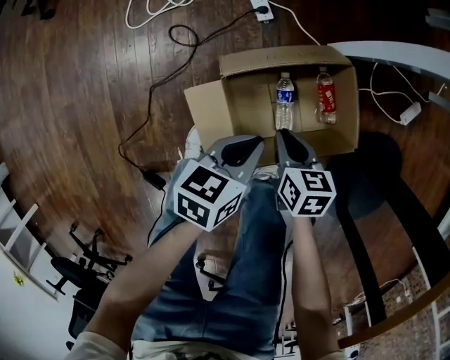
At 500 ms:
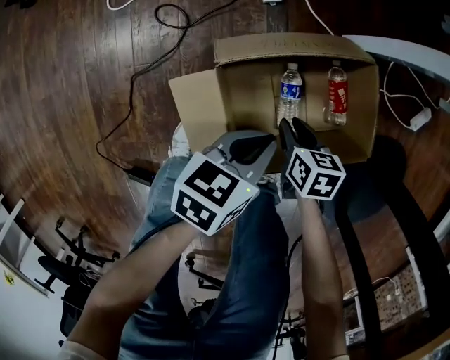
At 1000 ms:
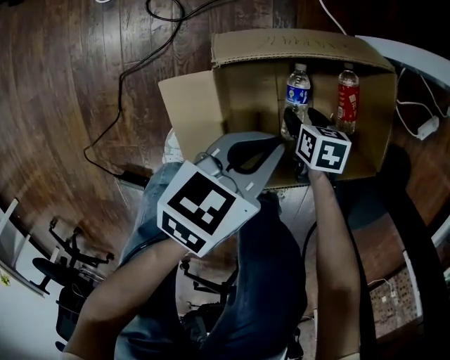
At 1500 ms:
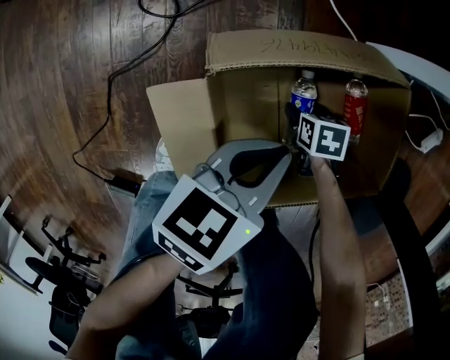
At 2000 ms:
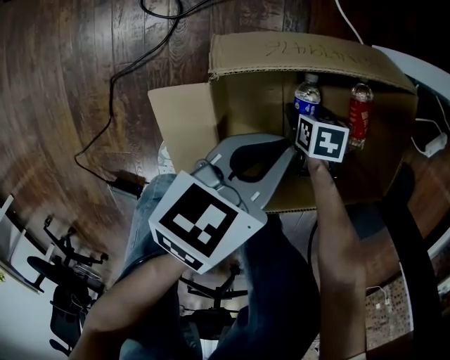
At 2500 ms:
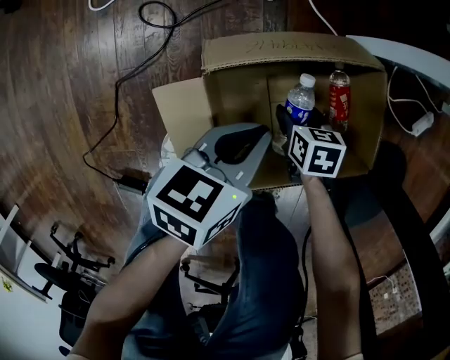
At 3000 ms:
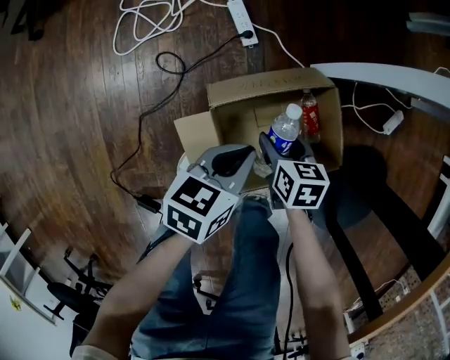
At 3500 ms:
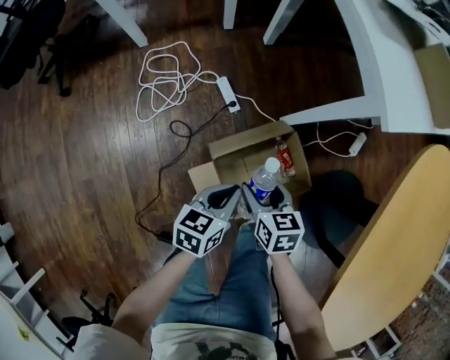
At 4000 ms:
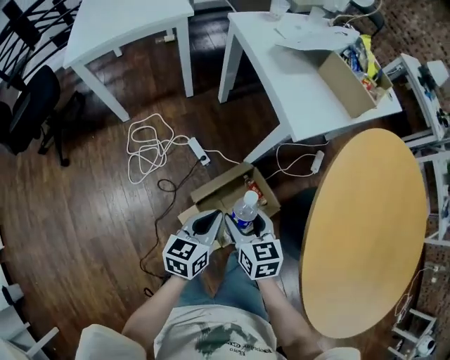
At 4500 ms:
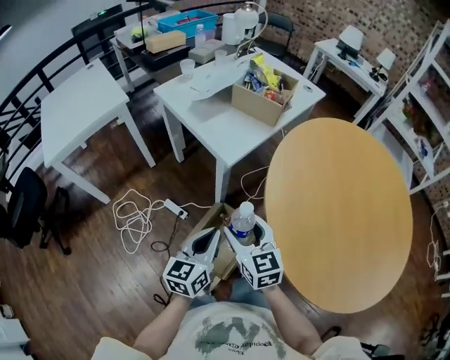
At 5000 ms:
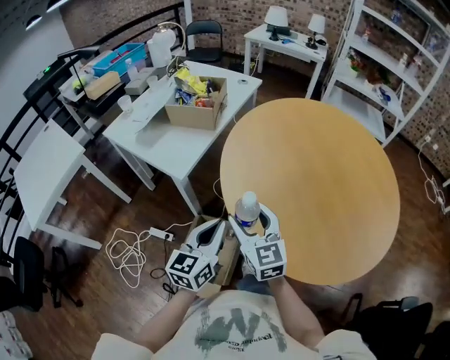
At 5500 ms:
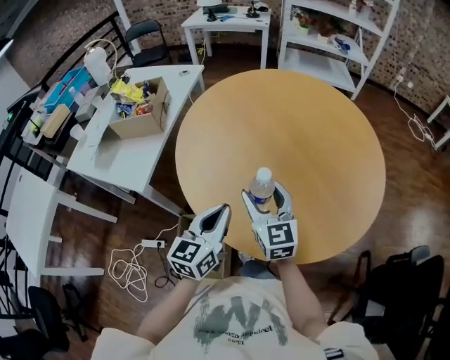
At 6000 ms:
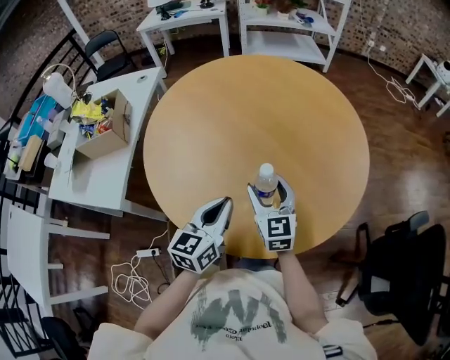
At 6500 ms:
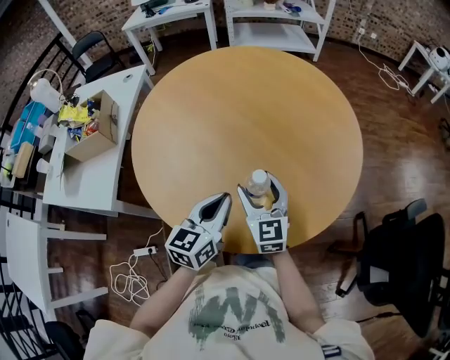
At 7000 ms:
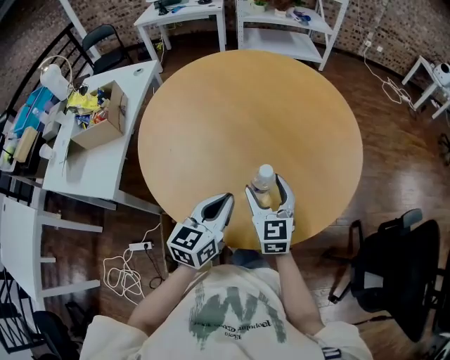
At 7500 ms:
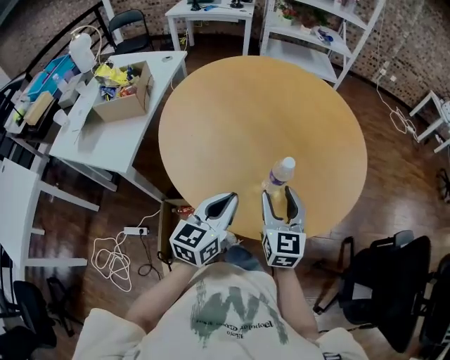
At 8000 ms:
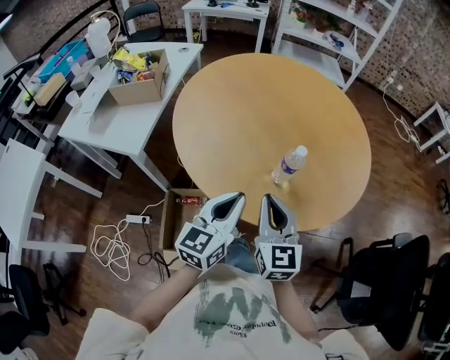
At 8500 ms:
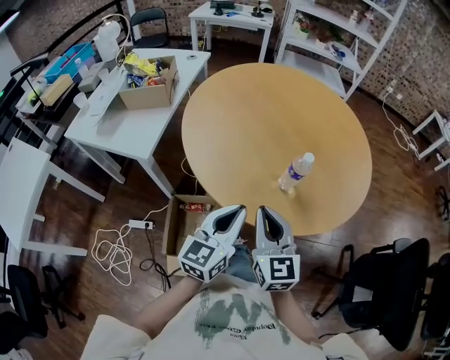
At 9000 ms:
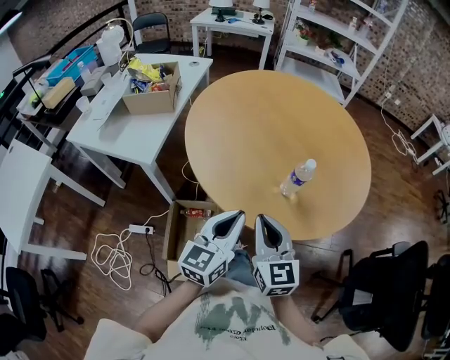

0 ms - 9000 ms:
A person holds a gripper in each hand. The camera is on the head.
0 ms - 2000 ms: The left gripper moves downward, approximately 15 cm. The right gripper travels downward by roughly 30 cm, swivels about 30 degrees, and opens its fingers.
2000 ms - 4500 ms: Both grippers move upward, approximately 80 cm. The left gripper turns by about 40 degrees, while the right gripper tips its fingers upward by approximately 60 degrees.
4500 ms - 7000 ms: The right gripper shifts by about 40 cm, and changes its angle by approximately 60 degrees. The left gripper shifts by roughly 40 cm, and rotates roughly 50 degrees.
7000 ms - 9000 ms: The grippers both shift backward and to the left by roughly 20 cm. The right gripper closes.

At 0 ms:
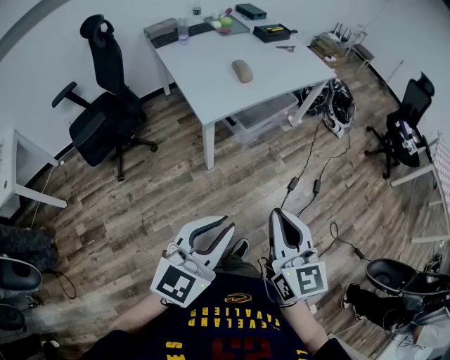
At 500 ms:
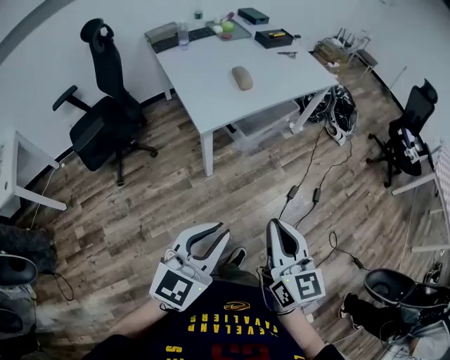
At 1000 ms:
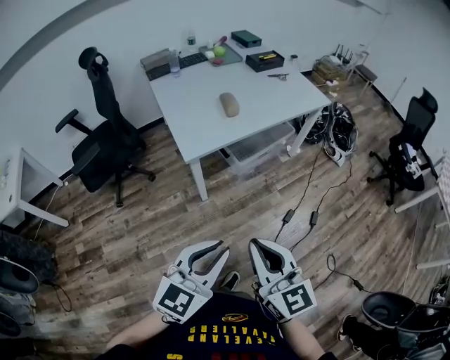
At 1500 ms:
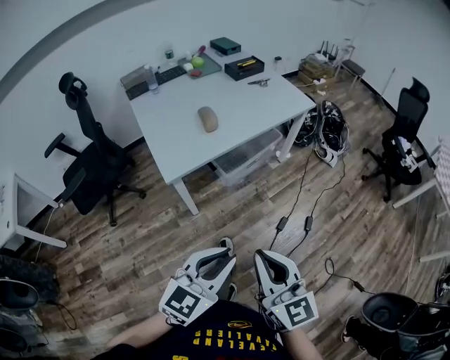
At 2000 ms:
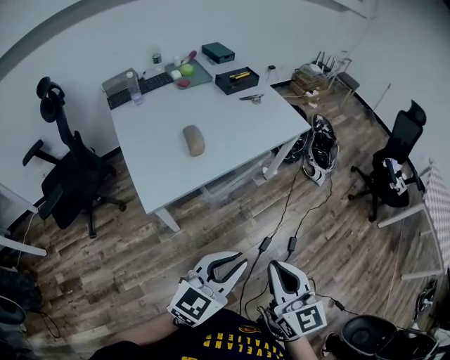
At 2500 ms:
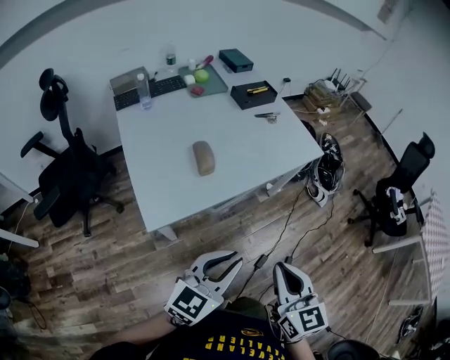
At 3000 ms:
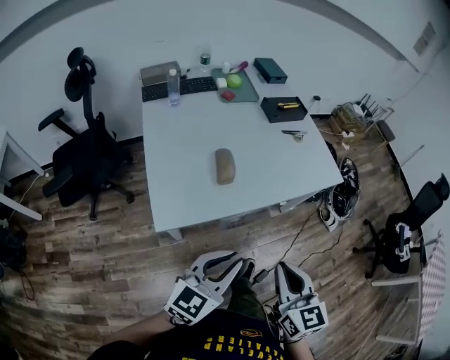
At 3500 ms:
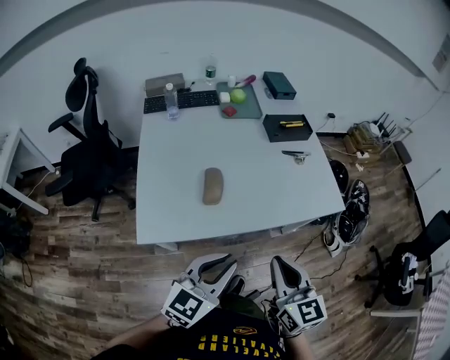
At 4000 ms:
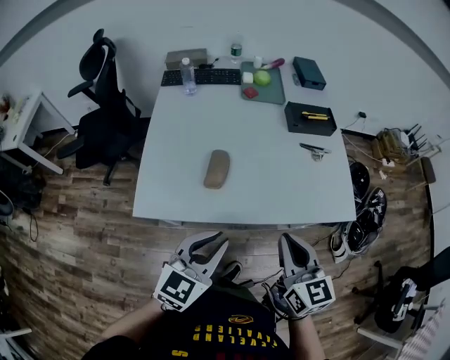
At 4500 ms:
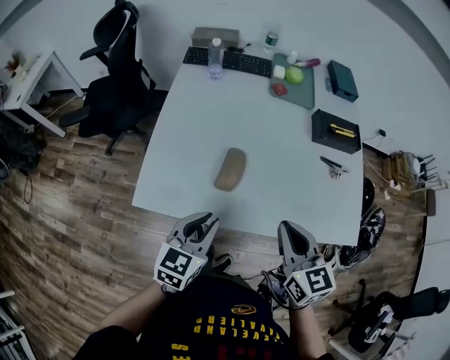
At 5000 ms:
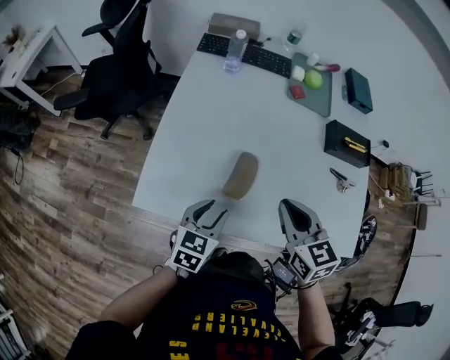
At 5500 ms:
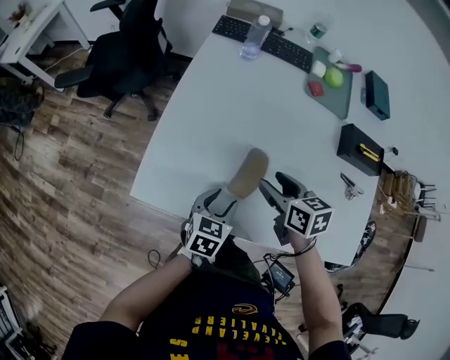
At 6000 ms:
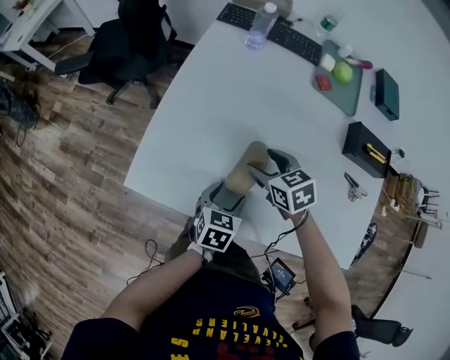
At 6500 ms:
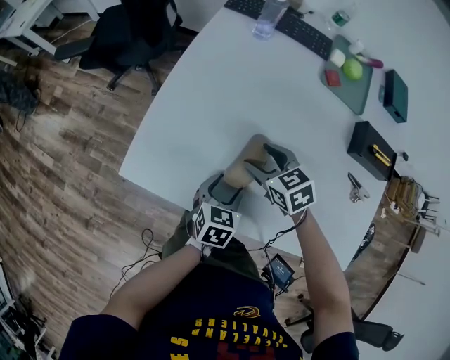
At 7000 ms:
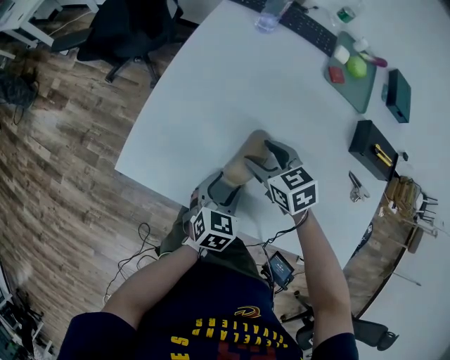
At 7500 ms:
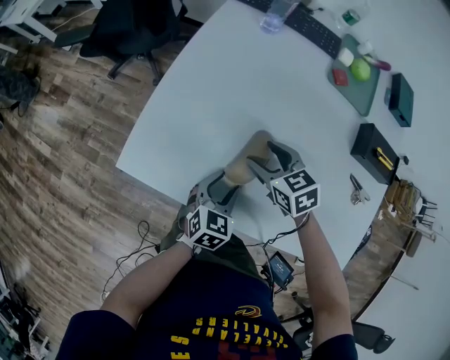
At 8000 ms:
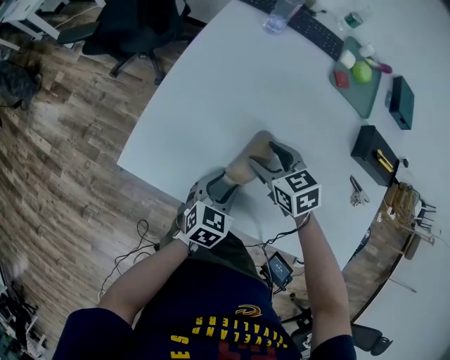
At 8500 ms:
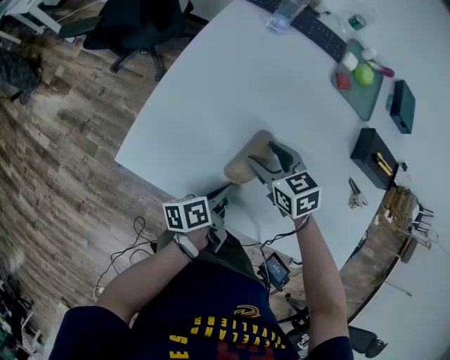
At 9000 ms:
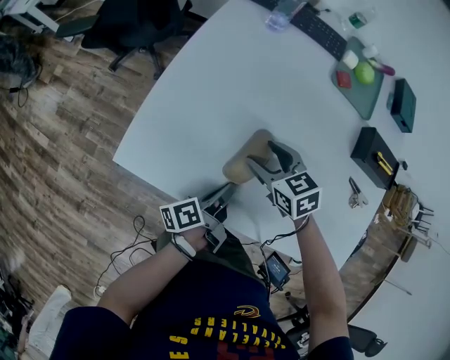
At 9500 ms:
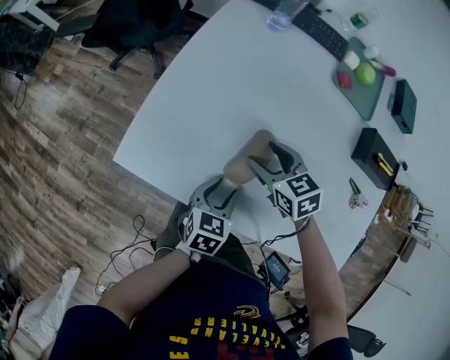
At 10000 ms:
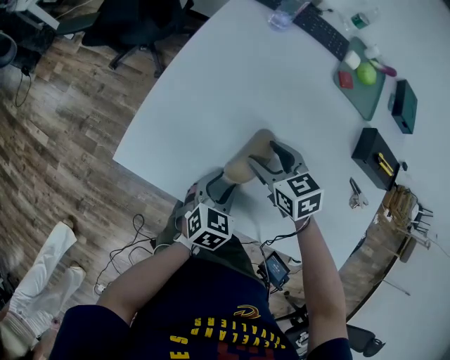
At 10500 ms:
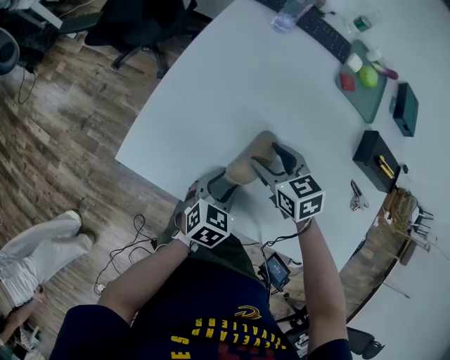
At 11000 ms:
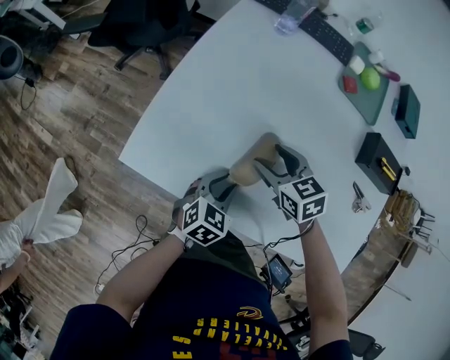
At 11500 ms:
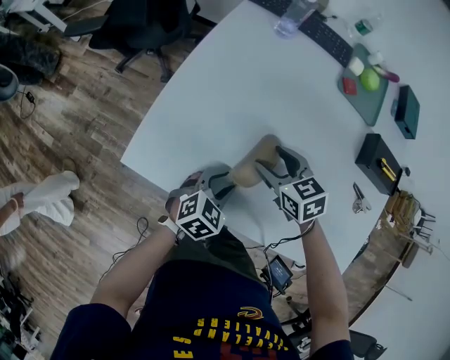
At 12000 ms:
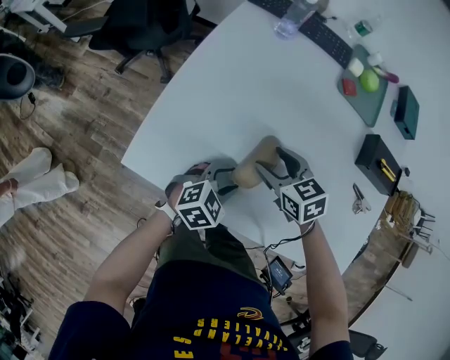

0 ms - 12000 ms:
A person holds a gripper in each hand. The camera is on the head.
0 ms - 2000 ms: Both grippers travel together forward and to the right, some 30 cm.
2000 ms - 4000 ms: The left gripper moves about 30 cm, and turns by approximately 40 degrees. The right gripper changes place by approximately 40 cm, and swivels about 30 degrees.
4000 ms - 6000 ms: The right gripper changes place by approximately 40 cm, angles its fingers downward, by roughly 40 degrees, and opens. The left gripper goes approximately 25 cm downward, changes its angle by approximately 50 degrees, and opens up.
6000 ms - 8000 ms: The grippers move only a little.
8000 ms - 10000 ms: The left gripper closes, then opens again.
10000 ms - 12000 ms: The left gripper turns by about 30 degrees.

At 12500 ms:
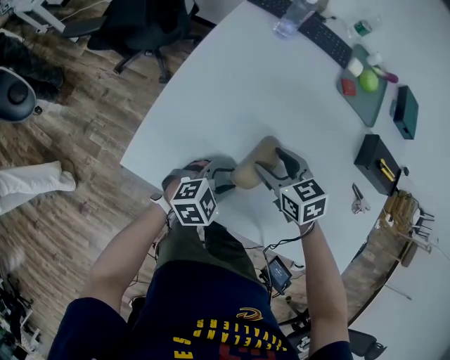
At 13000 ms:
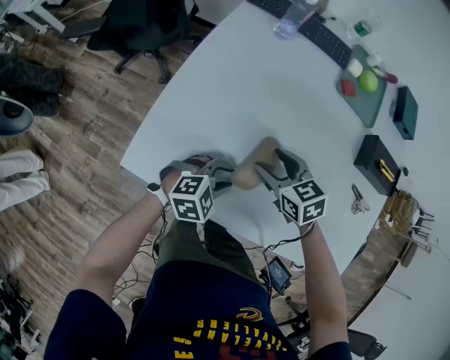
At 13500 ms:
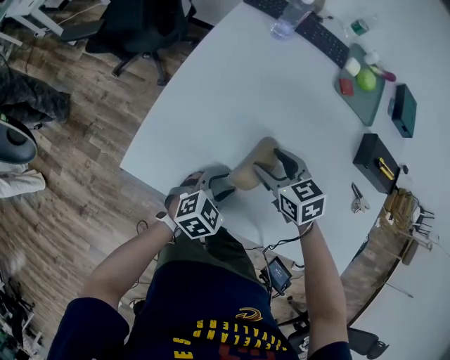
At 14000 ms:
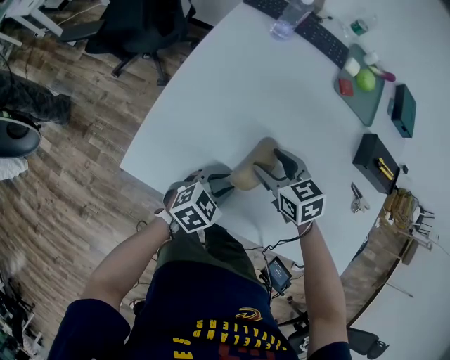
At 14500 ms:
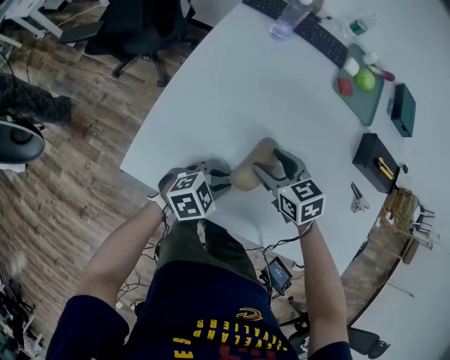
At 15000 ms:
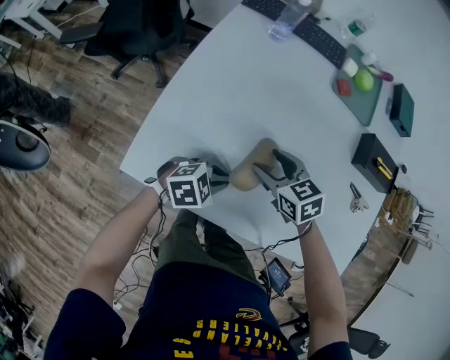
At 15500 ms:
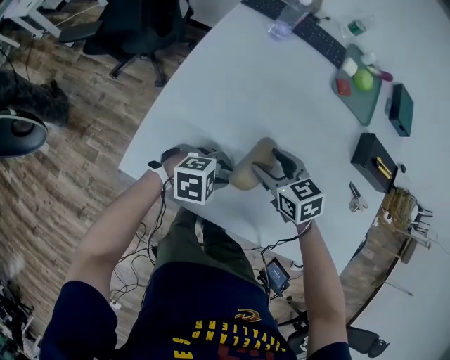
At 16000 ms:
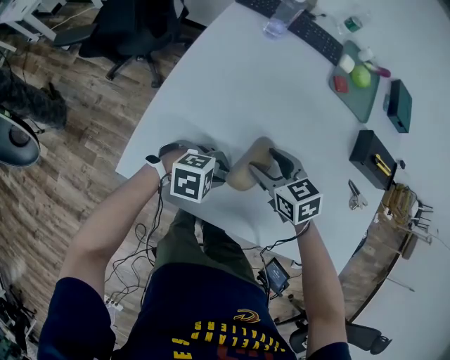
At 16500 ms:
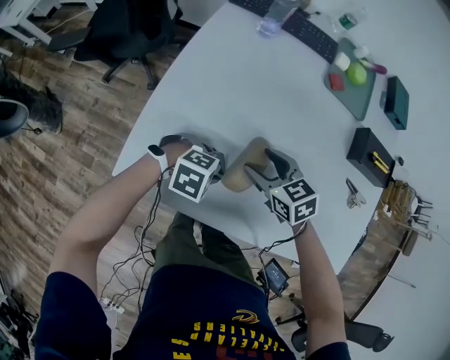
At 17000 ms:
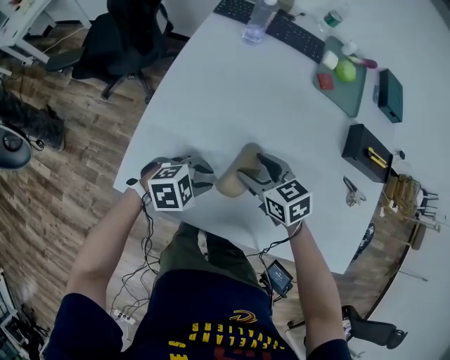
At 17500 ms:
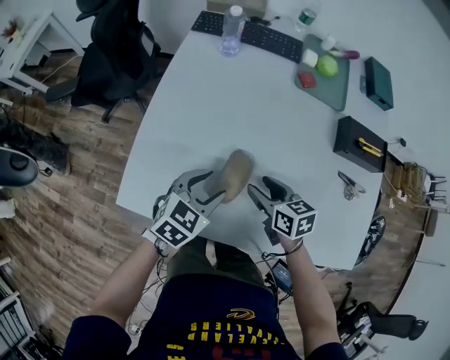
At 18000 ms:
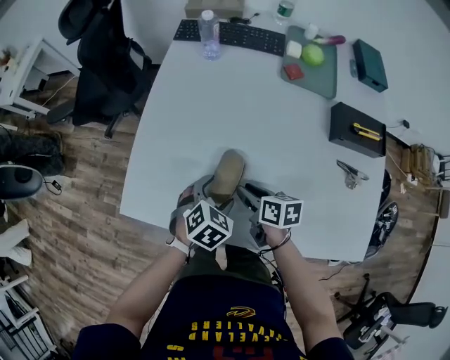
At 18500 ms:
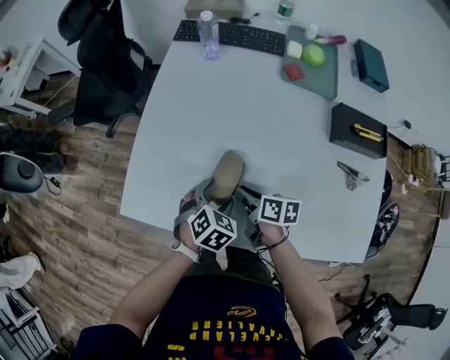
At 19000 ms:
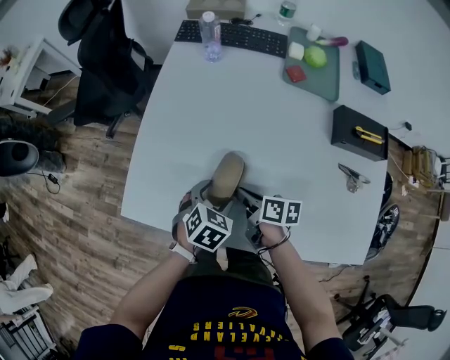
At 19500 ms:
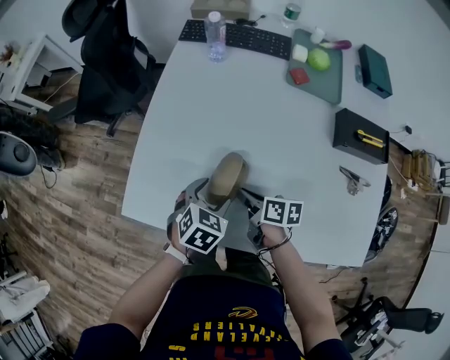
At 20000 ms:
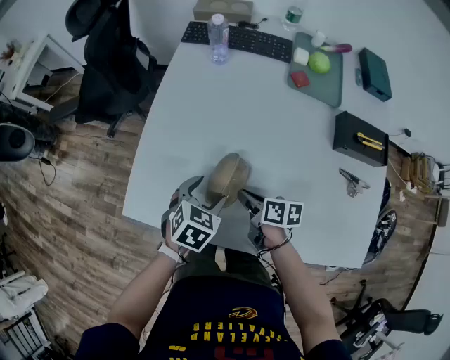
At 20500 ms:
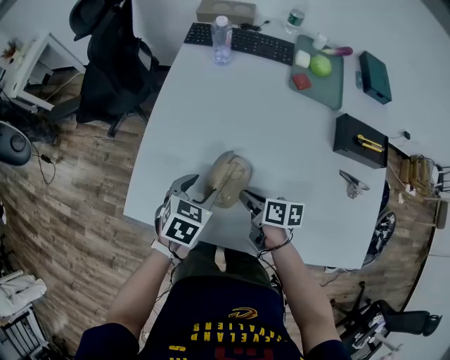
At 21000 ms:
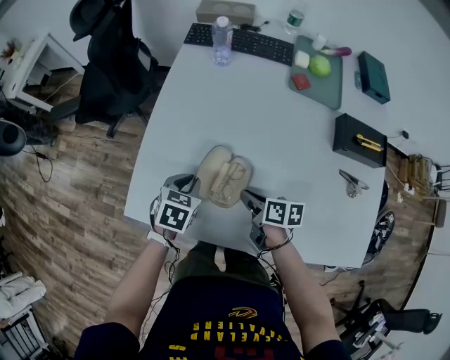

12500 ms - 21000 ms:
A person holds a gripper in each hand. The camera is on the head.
12500 ms - 14500 ms: The grippers move only a little.
14500 ms - 16500 ms: The left gripper swivels approximately 40 degrees.
16500 ms - 19000 ms: The left gripper rolls counterclockwise, seen from behind, by about 50 degrees, and opens, while the right gripper ends up roughly 5 cm from where it was, rolls clockwise, seen from behind, by about 60 degrees, and closes its fingers.
19000 ms - 21000 ms: The left gripper travels to the left and forward by some 10 cm, and closes its fingers.
